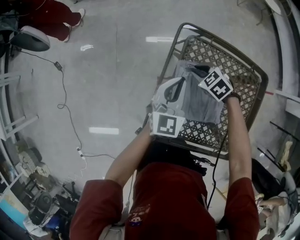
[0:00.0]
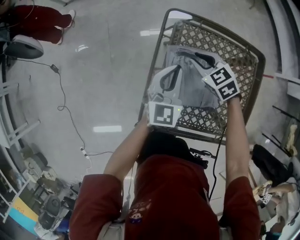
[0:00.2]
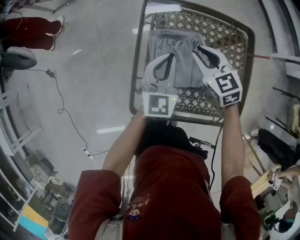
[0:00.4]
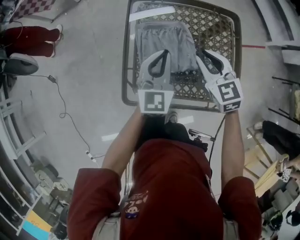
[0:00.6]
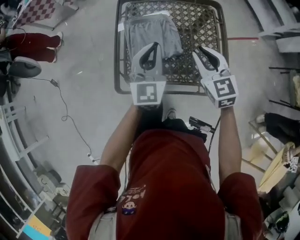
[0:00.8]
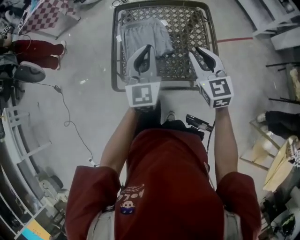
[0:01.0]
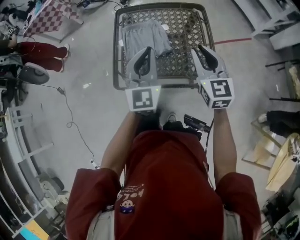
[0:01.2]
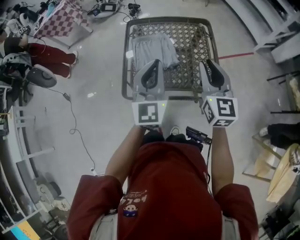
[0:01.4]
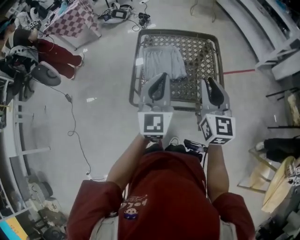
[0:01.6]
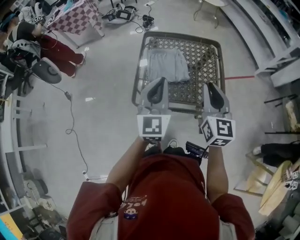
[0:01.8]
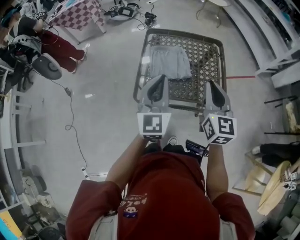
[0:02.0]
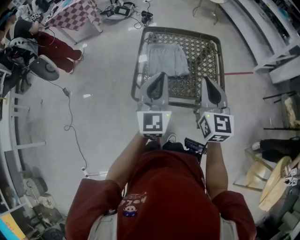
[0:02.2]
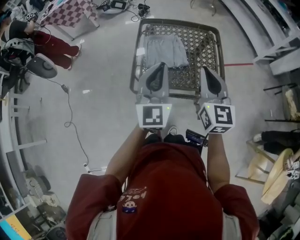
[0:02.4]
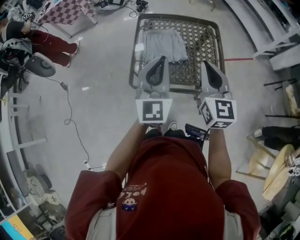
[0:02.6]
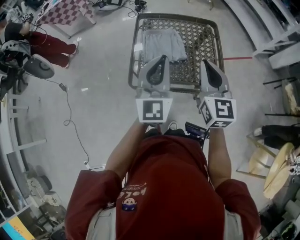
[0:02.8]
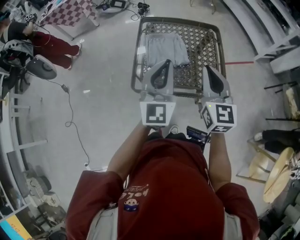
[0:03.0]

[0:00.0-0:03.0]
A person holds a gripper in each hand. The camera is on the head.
0.0 to 1.6 s: The left gripper changes place by roughly 35 cm, and rotates about 20 degrees. The right gripper ends up roughly 50 cm from where it was, and tips its fingers upward by about 60 degrees.
1.6 to 3.0 s: The right gripper ends up approximately 5 cm from where it was.

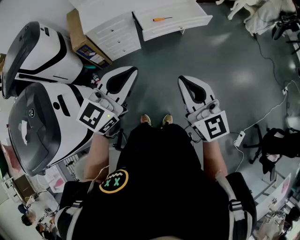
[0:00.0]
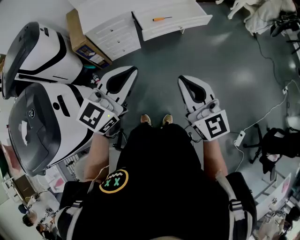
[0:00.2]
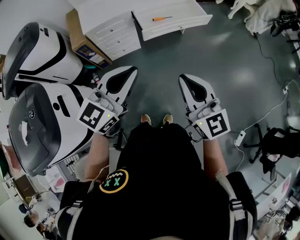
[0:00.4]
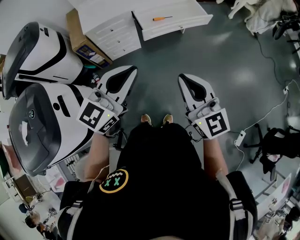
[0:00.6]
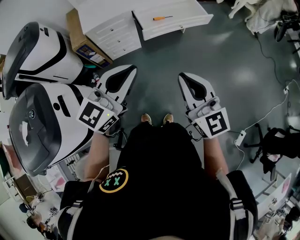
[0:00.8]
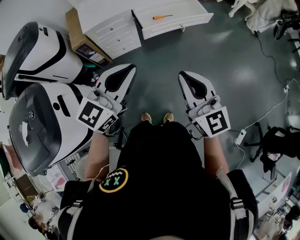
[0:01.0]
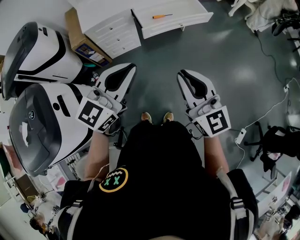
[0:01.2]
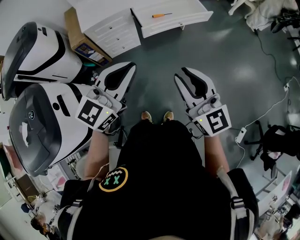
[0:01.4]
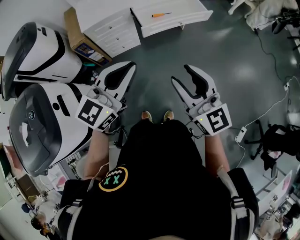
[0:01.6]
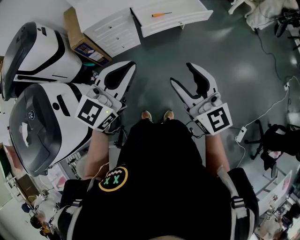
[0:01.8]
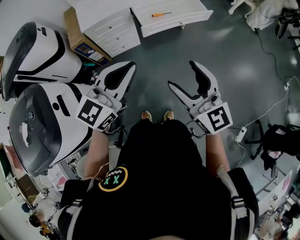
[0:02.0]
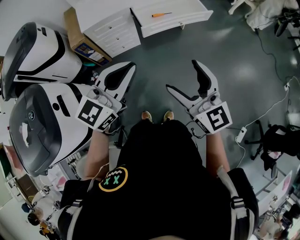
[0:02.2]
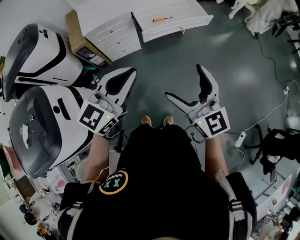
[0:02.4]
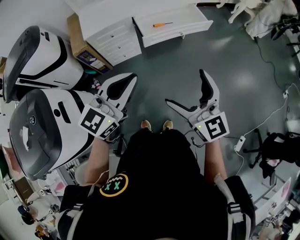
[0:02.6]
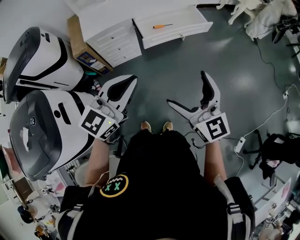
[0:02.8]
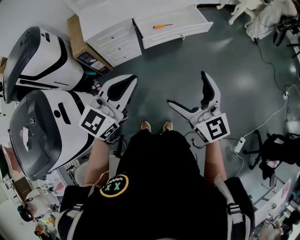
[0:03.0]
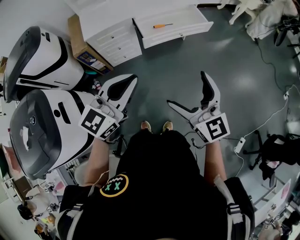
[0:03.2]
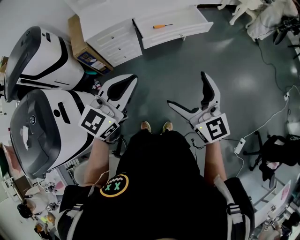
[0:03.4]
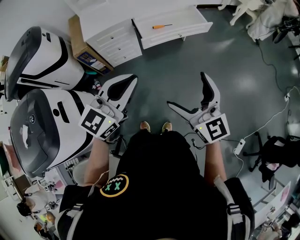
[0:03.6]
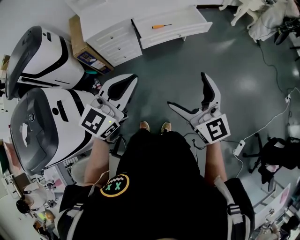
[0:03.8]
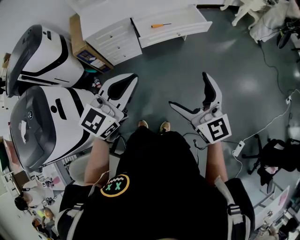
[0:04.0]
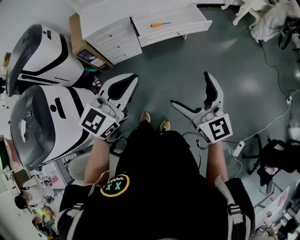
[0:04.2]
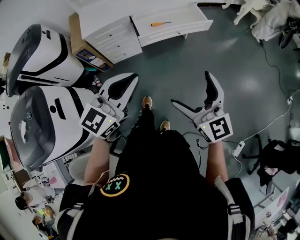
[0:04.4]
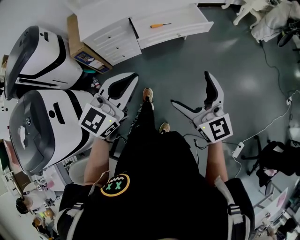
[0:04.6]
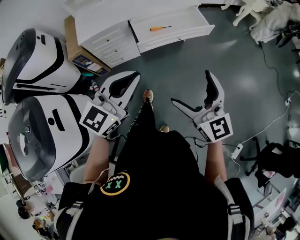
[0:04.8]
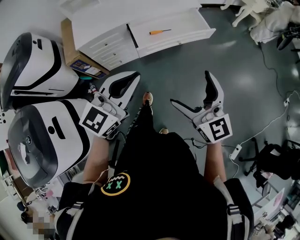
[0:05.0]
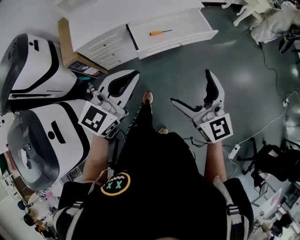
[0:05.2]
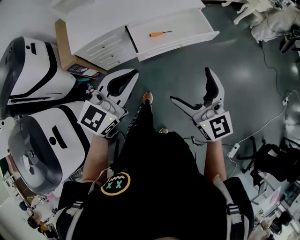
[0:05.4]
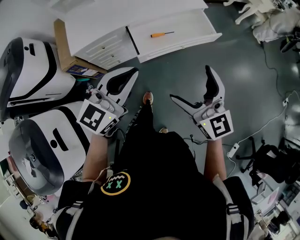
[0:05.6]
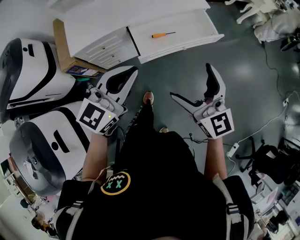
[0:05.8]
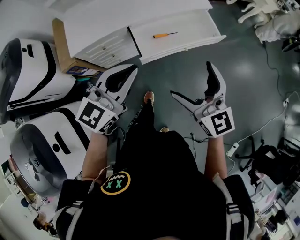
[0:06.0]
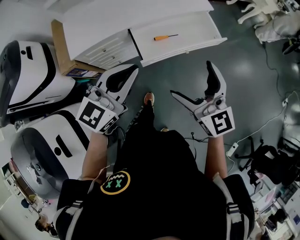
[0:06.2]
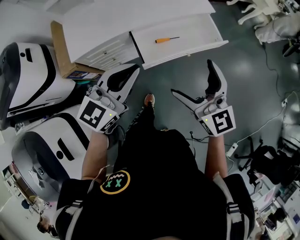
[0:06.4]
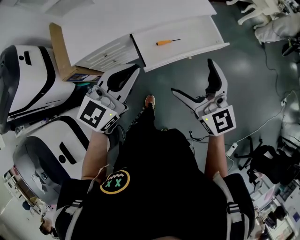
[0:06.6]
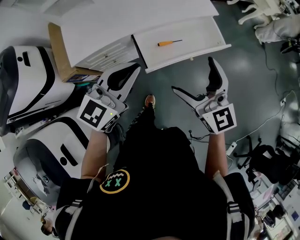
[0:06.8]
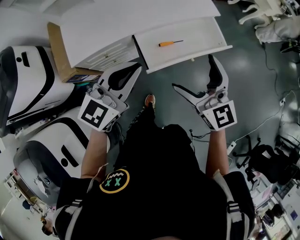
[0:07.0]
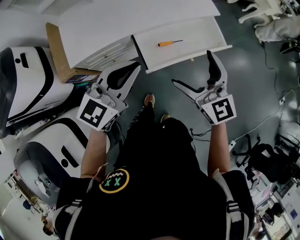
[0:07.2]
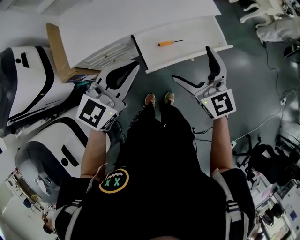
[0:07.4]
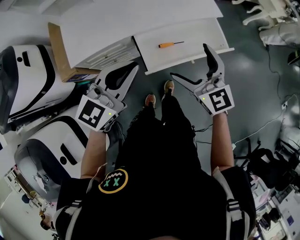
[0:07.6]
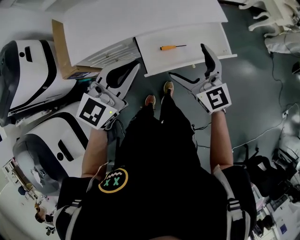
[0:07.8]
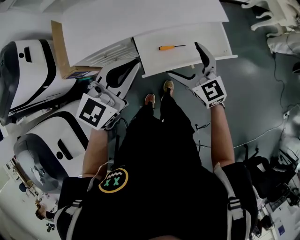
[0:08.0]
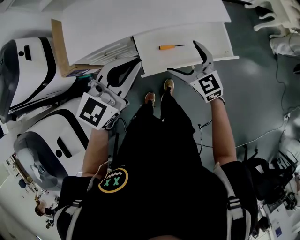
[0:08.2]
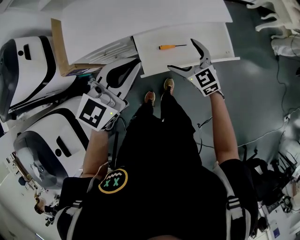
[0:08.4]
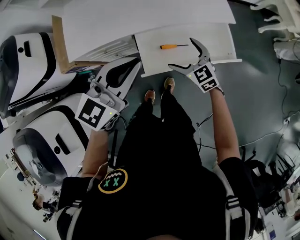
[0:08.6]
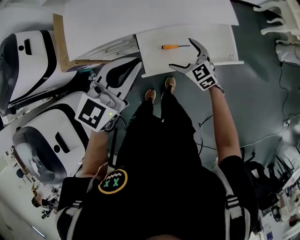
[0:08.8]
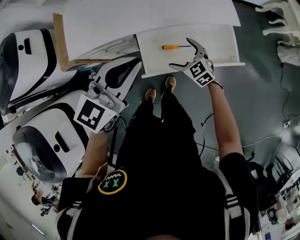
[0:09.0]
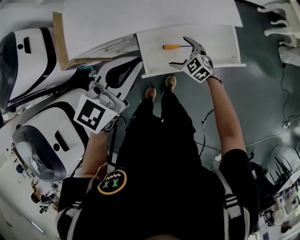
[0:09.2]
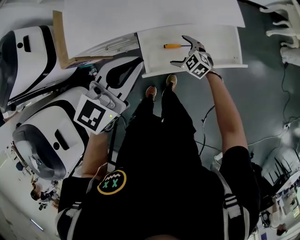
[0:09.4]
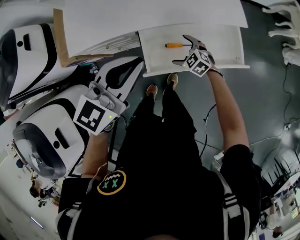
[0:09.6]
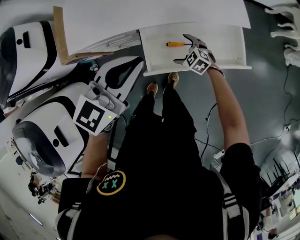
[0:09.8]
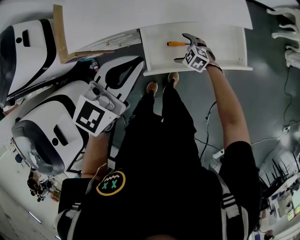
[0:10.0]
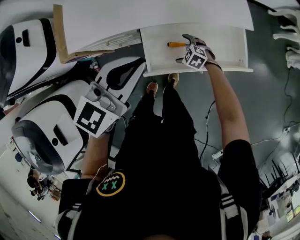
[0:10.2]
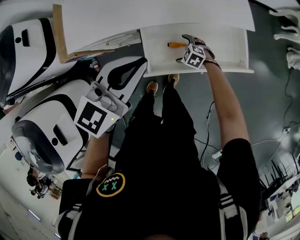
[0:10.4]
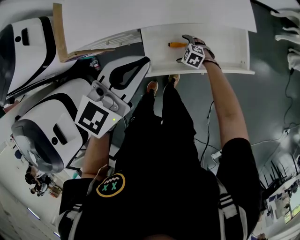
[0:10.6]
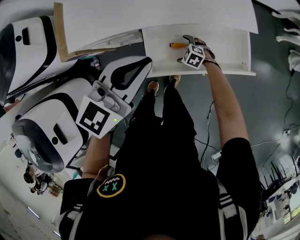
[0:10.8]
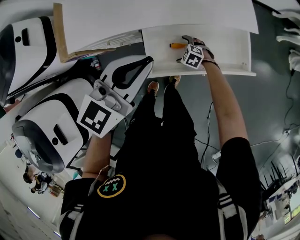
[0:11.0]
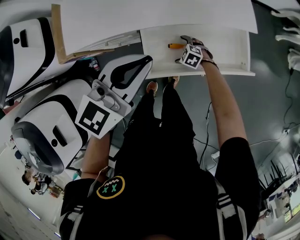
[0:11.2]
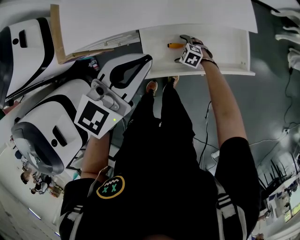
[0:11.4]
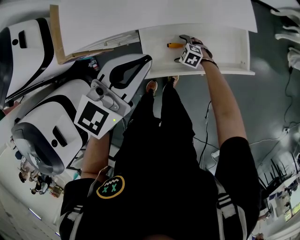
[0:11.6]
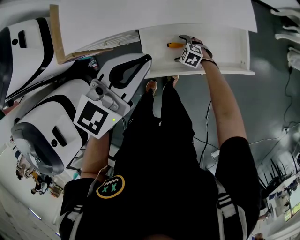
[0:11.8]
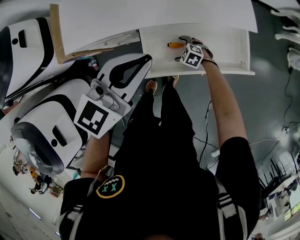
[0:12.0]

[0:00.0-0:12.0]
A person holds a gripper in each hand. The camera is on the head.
0.0 to 1.6 s: The grippers make only small movements.
1.6 to 3.0 s: The right gripper opens.
3.0 to 4.4 s: The grippers both shift to the right by roughly 5 cm.
4.4 to 6.0 s: Both grippers move forward, approximately 30 cm.
6.0 to 7.6 s: Both grippers travel together forward, approximately 15 cm.
7.6 to 9.0 s: The right gripper moves downward and forward, about 25 cm, and swivels some 30 degrees; the left gripper travels forward and to the right by some 10 cm.
9.0 to 10.4 s: The right gripper heads downward, covering some 15 cm, and changes its angle by about 30 degrees.
10.4 to 12.0 s: There are only small adjustments of the grippers.

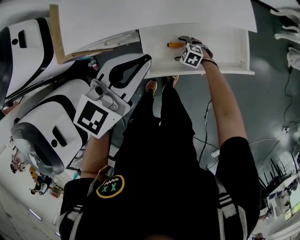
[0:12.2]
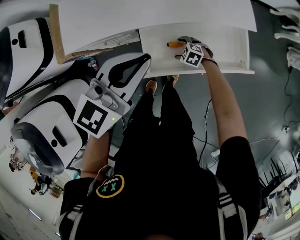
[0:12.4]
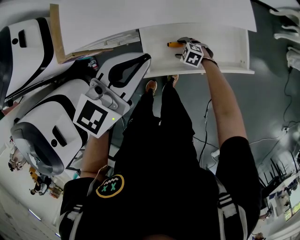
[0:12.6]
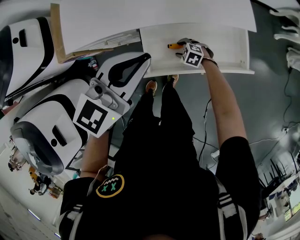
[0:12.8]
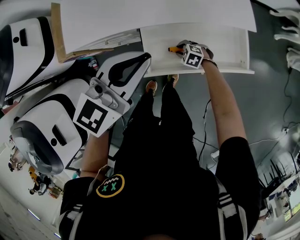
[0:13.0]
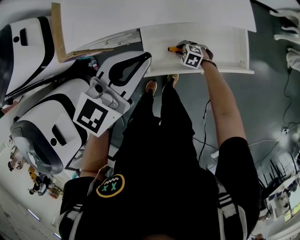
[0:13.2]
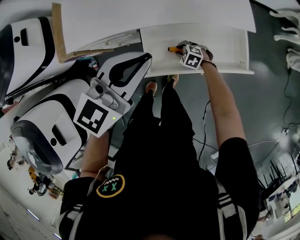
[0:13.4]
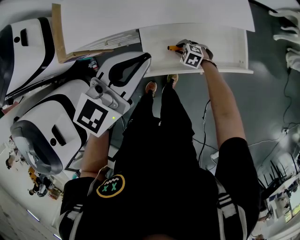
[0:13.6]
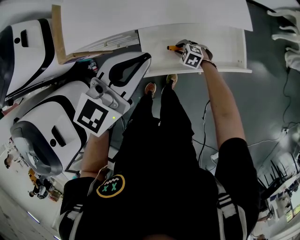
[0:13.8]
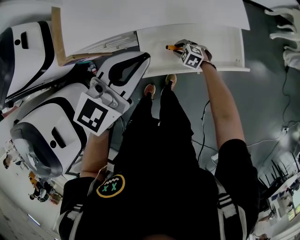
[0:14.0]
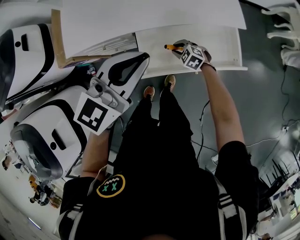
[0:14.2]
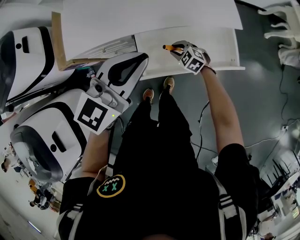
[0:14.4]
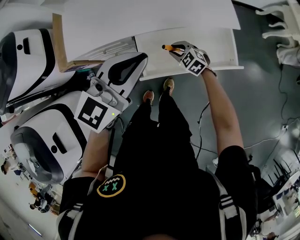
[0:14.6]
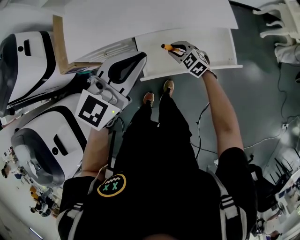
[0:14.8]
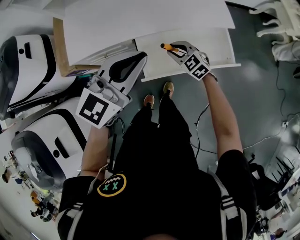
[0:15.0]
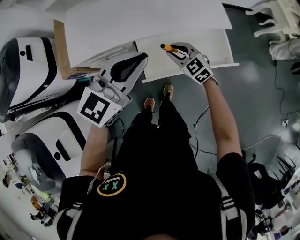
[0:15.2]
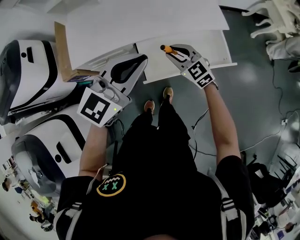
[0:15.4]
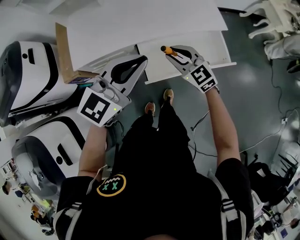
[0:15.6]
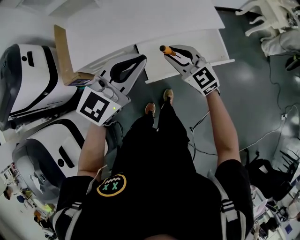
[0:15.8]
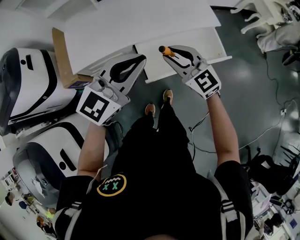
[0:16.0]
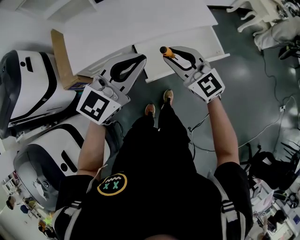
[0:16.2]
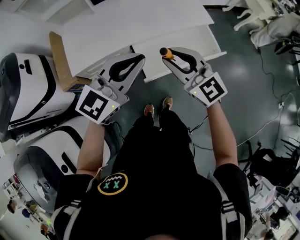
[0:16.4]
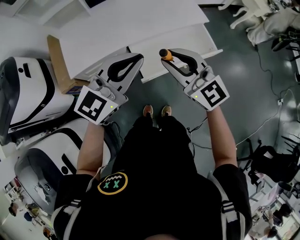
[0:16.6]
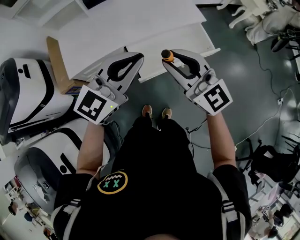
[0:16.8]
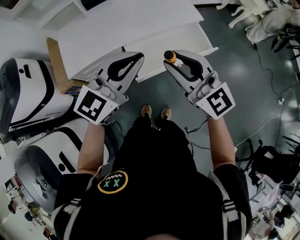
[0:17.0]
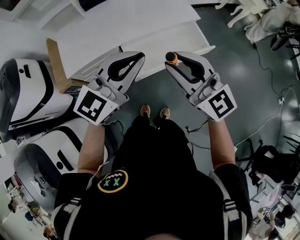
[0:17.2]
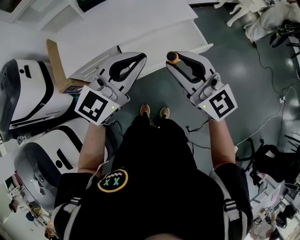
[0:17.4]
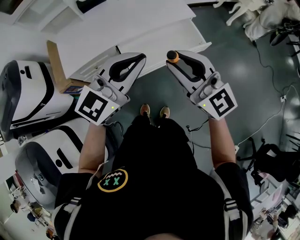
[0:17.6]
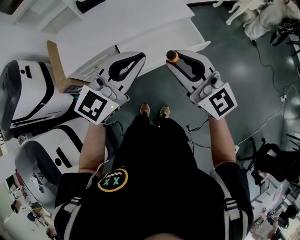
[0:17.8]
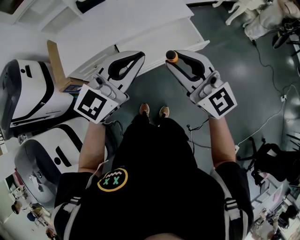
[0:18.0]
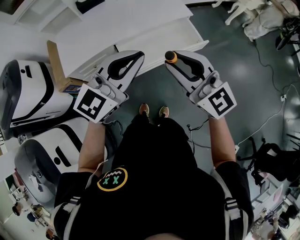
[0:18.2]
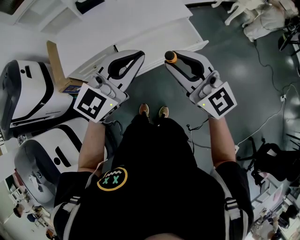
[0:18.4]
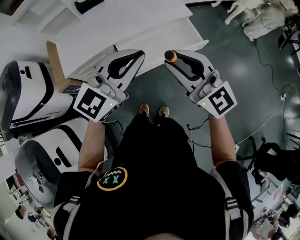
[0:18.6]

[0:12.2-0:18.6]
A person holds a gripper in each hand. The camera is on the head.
12.2 to 13.8 s: The right gripper closes its fingers.
13.8 to 15.4 s: The left gripper heads upward, covering approximately 5 cm. Meanwhile the right gripper heads upward, covering some 25 cm, and points its fingers about 30 degrees further upward.
15.4 to 17.0 s: The right gripper is displaced upward and backward by some 30 cm, and tips its fingers upward by roughly 30 degrees. Meanwhile the left gripper is displaced backward by about 10 cm.
17.0 to 18.6 s: The left gripper shifts about 5 cm to the right. Meanwhile the right gripper travels to the right and backward by about 10 cm.

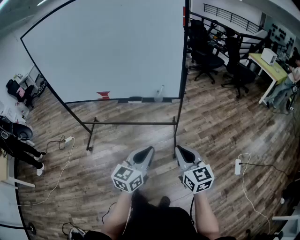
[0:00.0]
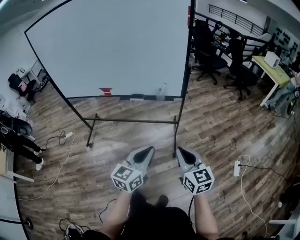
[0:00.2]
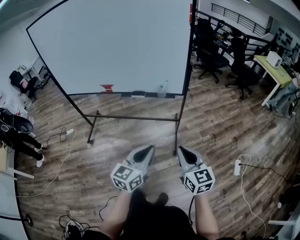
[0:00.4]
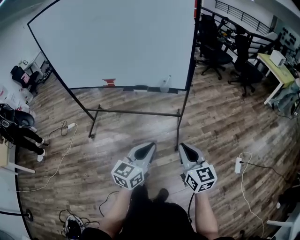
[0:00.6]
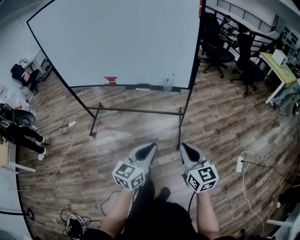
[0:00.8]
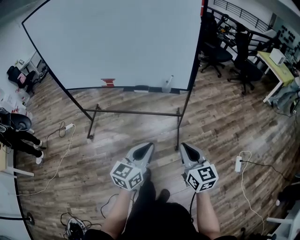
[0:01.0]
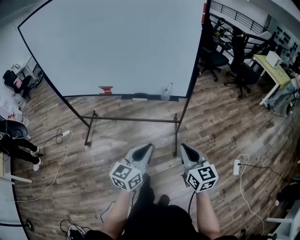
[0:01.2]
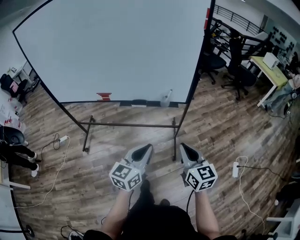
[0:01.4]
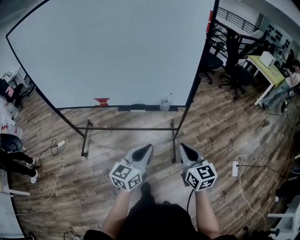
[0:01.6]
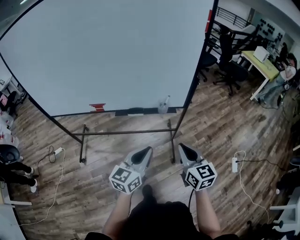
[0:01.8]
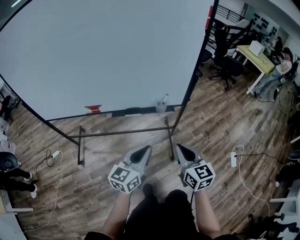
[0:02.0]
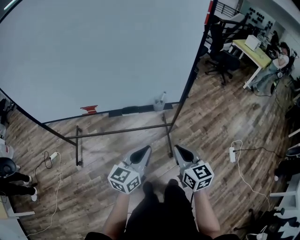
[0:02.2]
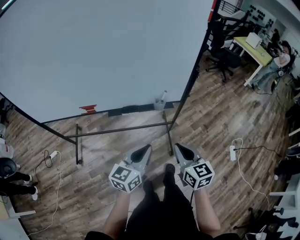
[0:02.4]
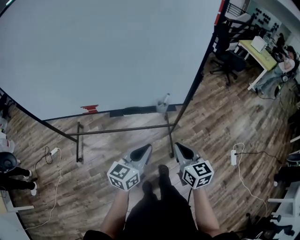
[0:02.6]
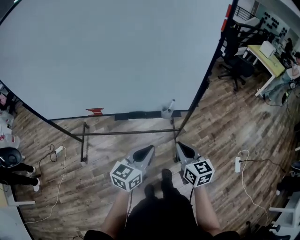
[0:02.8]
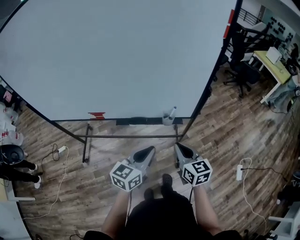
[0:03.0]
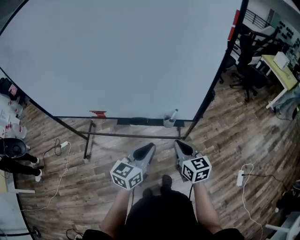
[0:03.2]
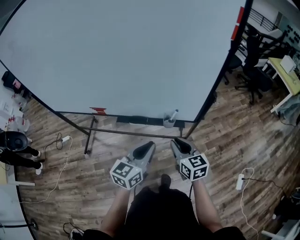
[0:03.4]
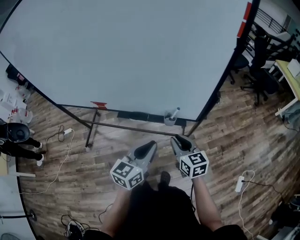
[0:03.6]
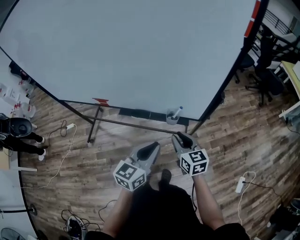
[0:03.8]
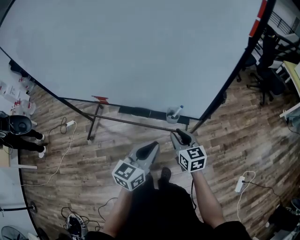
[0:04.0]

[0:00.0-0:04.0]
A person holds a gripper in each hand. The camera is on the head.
0.0 to 1.4 s: Both grippers move forward and to the left, some 10 cm.
1.4 to 2.6 s: The right gripper moves forward, to the left and downward, approximately 15 cm. Meanwhile the left gripper is displaced forward by roughly 15 cm.
2.6 to 4.0 s: The right gripper moves forward and downward, about 20 cm, and opens up. The left gripper shifts about 10 cm forward and to the right.
